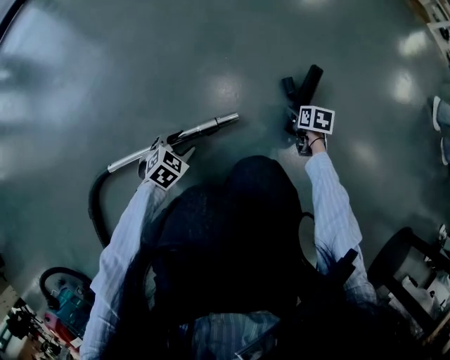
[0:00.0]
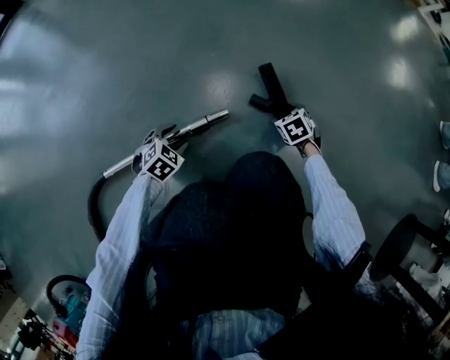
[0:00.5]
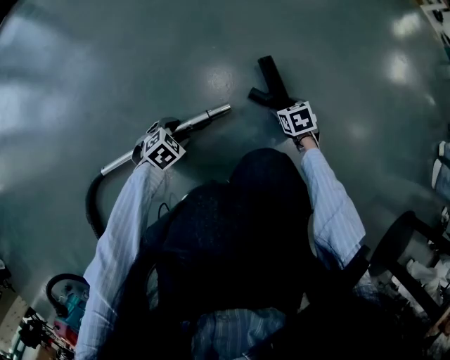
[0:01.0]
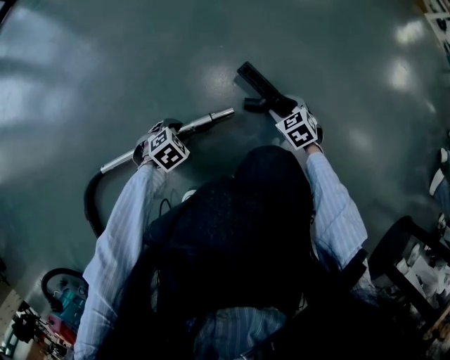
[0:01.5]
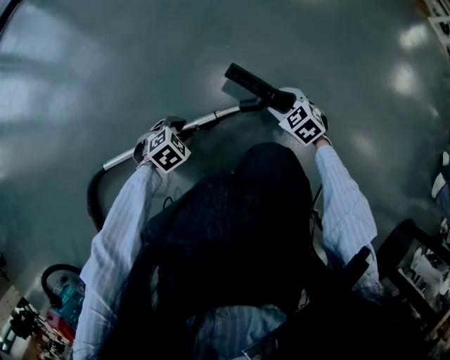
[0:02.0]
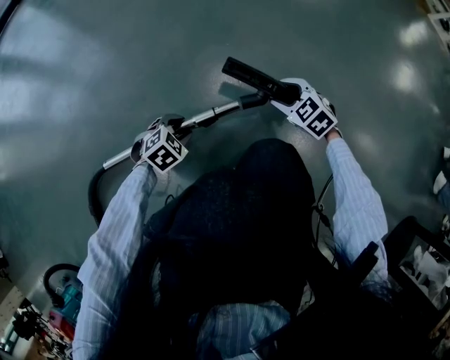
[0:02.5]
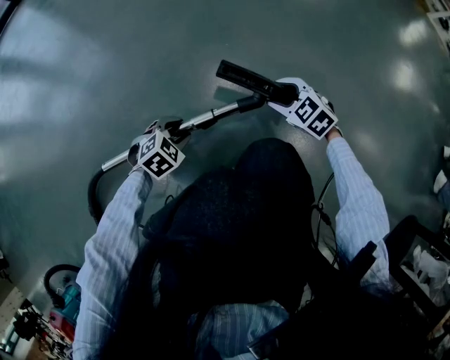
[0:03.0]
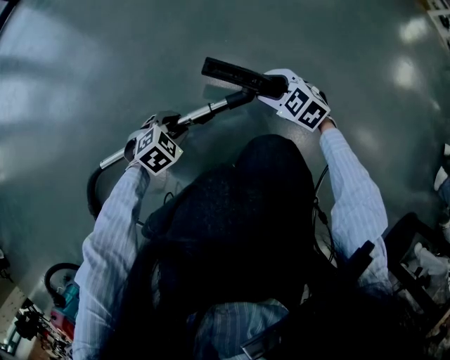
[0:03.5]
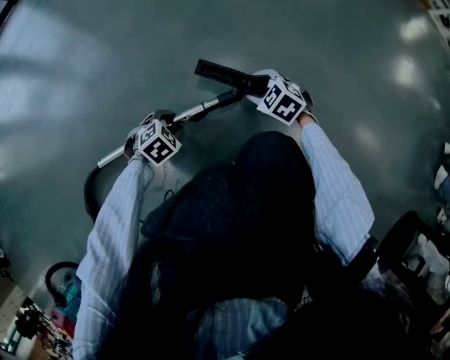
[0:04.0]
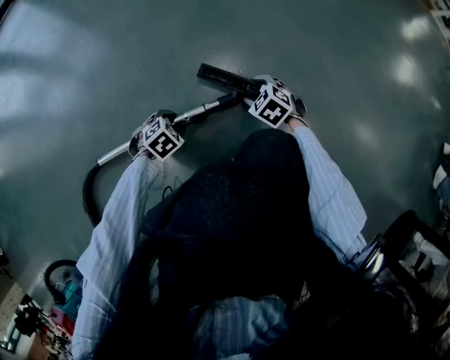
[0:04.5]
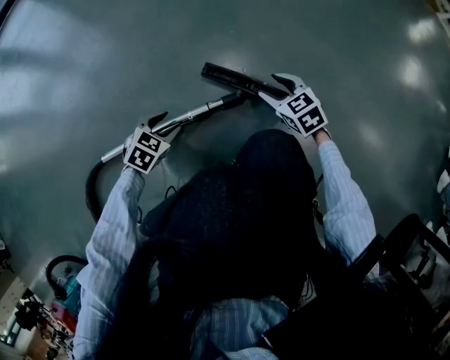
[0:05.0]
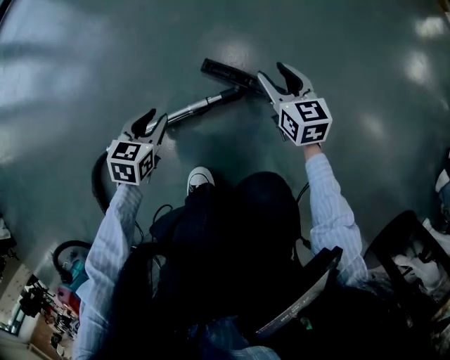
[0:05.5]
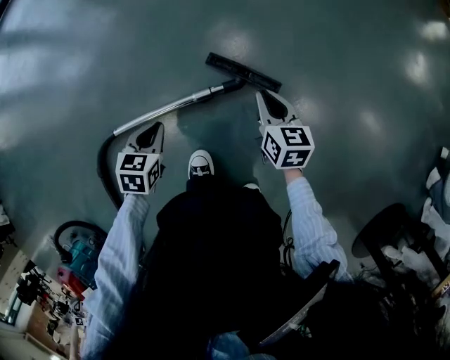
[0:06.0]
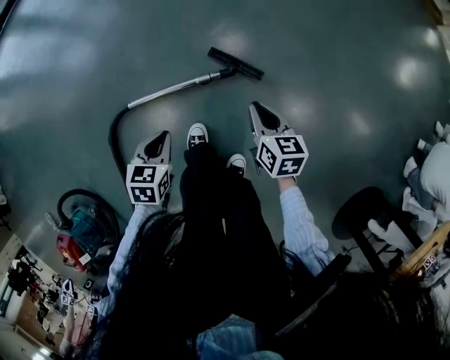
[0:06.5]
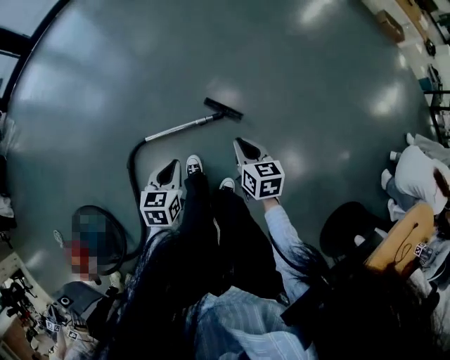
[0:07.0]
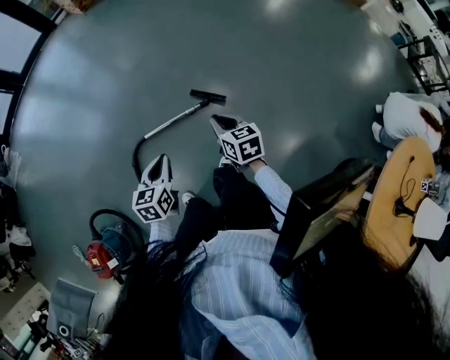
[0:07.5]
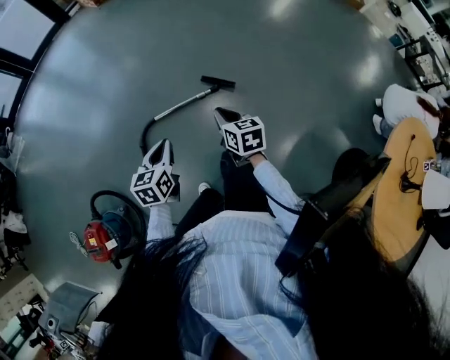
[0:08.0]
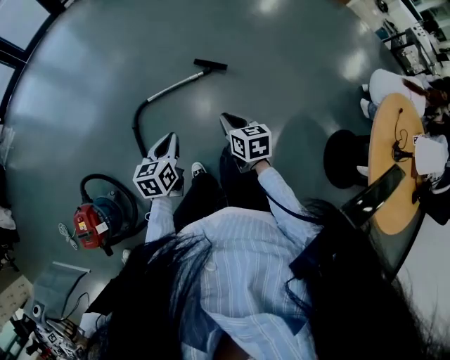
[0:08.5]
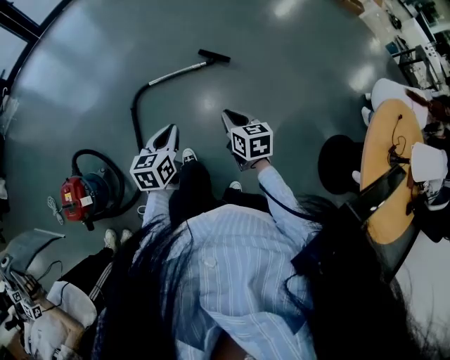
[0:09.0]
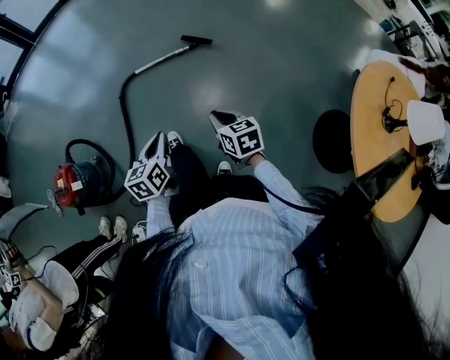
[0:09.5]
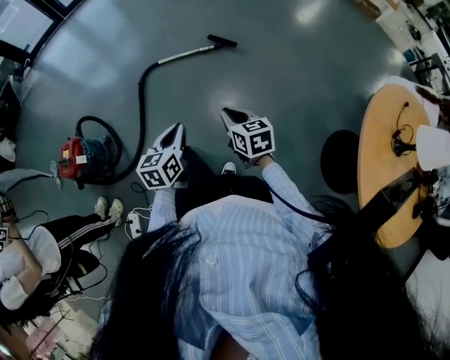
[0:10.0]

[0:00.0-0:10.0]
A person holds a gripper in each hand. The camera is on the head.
0:00.0 to 0:02.0: The right gripper goes approximately 15 cm to the left, backward and upward, and twists roughly 60 degrees counterclockwise, seen from behind.
0:02.0 to 0:04.0: The right gripper travels to the left by roughly 10 cm.
0:04.0 to 0:06.0: Both grippers travel together upward, roughly 20 cm. The left gripper twists about 40 degrees counterclockwise, seen from behind, and closes up. The right gripper rotates around the line of its fingers by approximately 50 degrees, clockwise from behind, and closes.
0:06.0 to 0:08.0: The grippers both shift upward and backward by some 80 cm. The left gripper turns by approximately 30 degrees.
0:08.0 to 0:10.0: The pair of grippers is taken backward, approximately 50 cm.

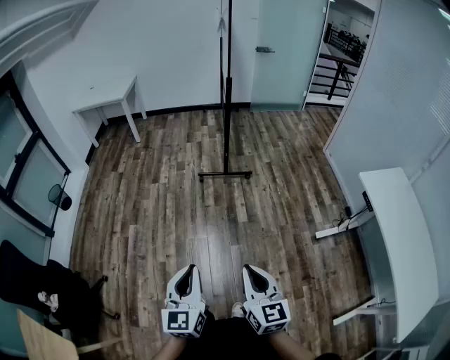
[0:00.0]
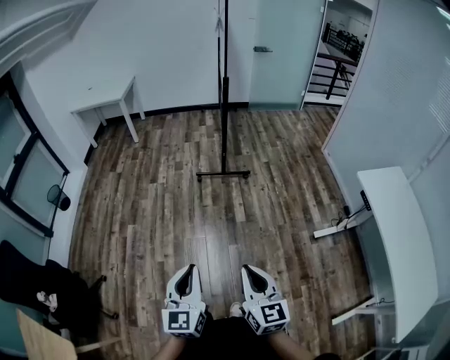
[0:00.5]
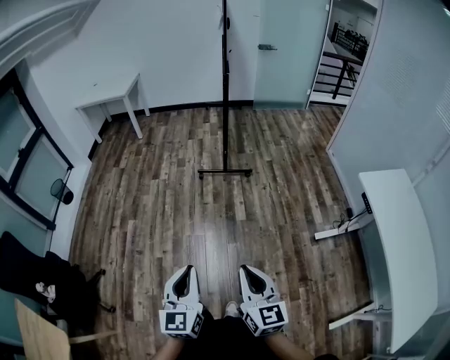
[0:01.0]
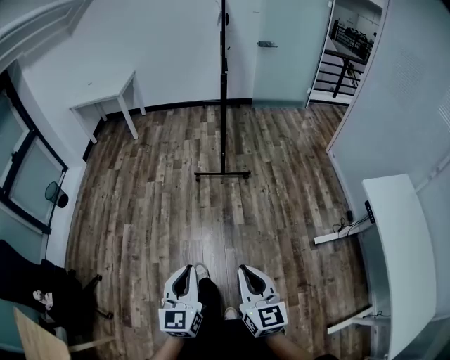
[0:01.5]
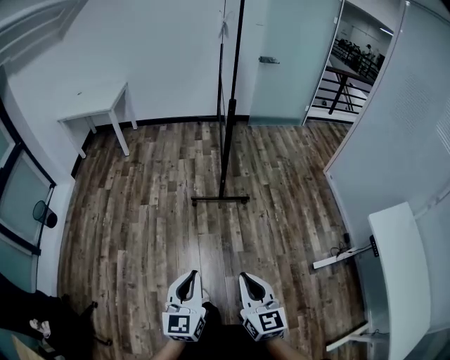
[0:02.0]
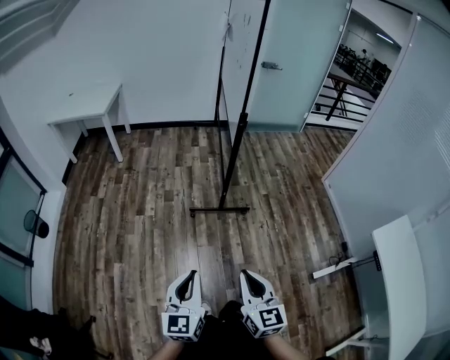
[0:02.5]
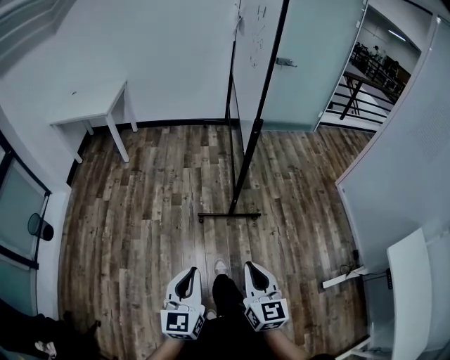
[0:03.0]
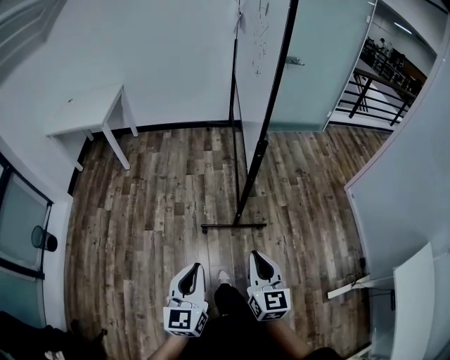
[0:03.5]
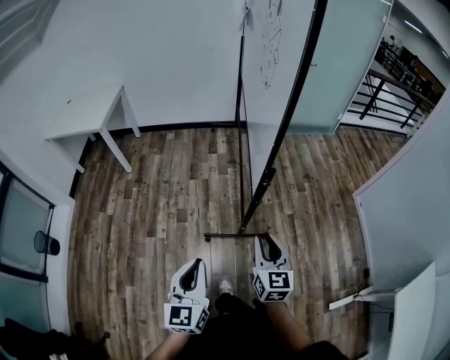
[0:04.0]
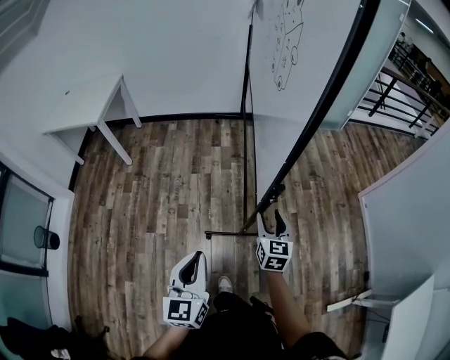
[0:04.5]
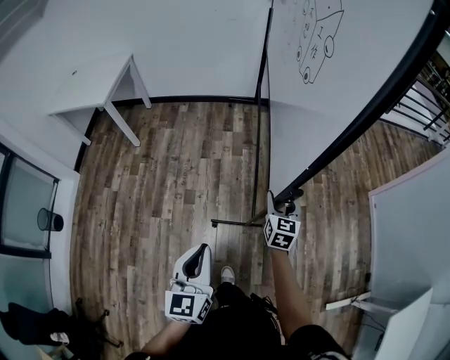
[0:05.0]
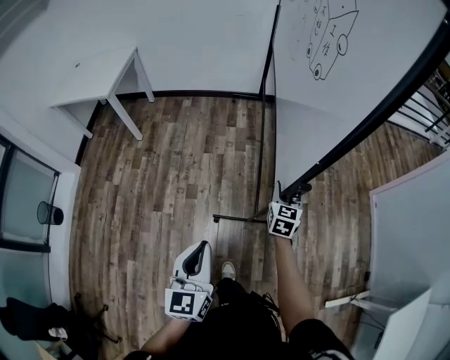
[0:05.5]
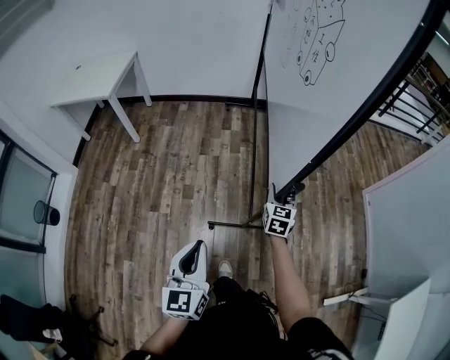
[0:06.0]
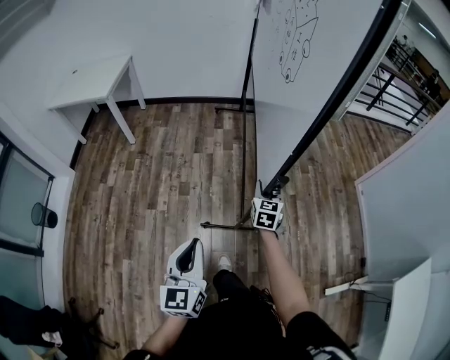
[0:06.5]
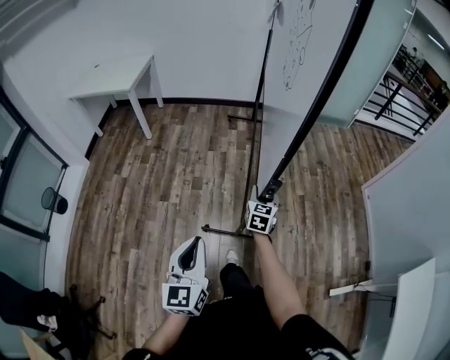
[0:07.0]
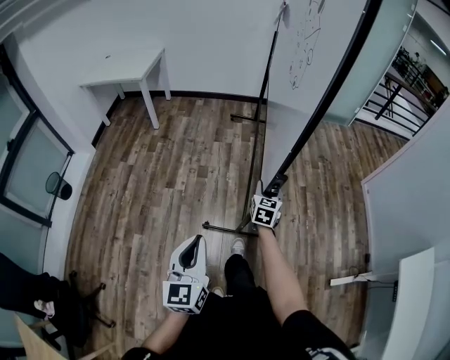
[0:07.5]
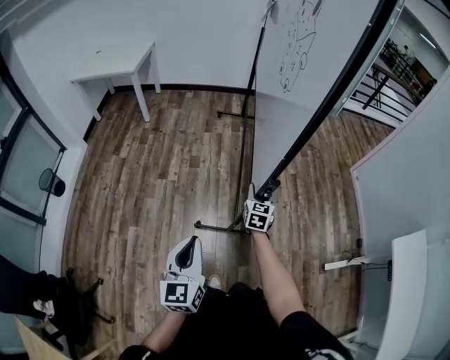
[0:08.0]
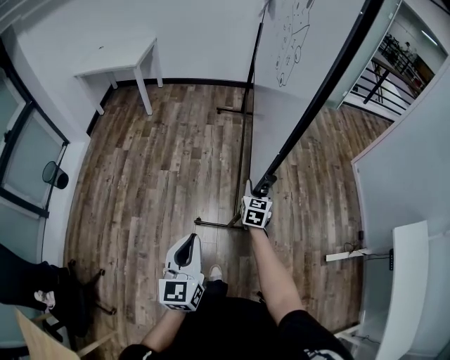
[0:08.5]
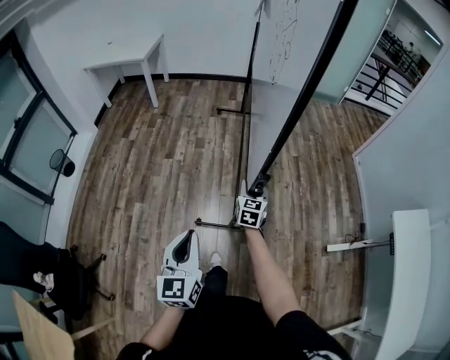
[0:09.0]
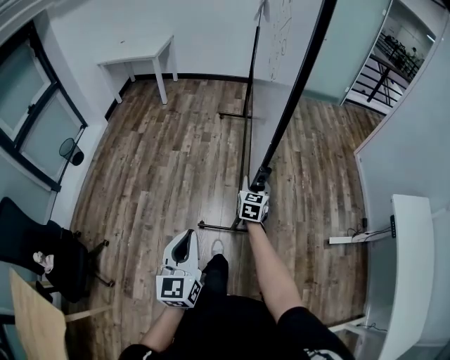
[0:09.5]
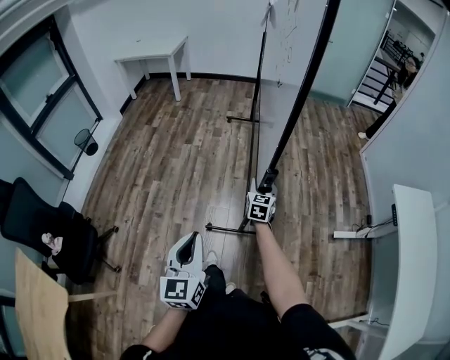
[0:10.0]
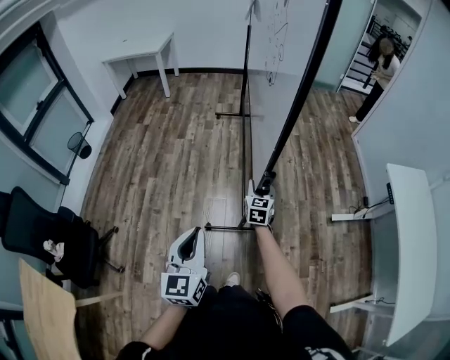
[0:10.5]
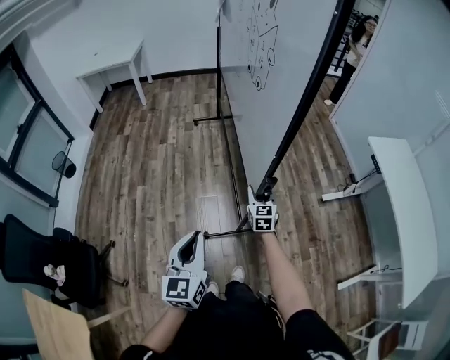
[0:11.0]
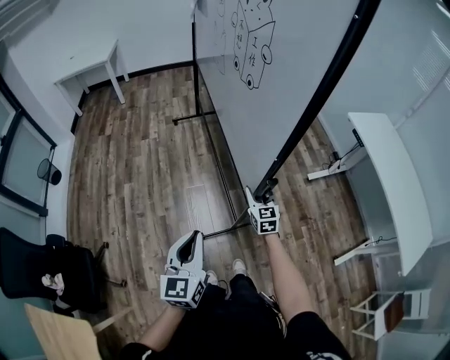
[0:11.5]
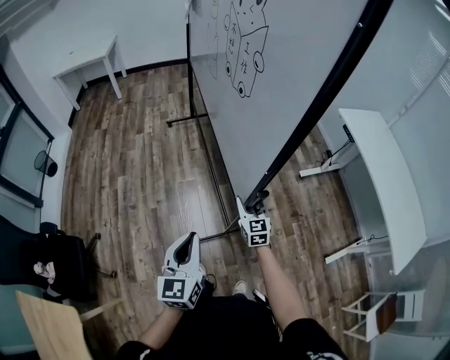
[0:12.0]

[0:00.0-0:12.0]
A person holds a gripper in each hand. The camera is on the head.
0:00.0 to 0:02.0: The grippers both shift forward by about 25 cm.
0:02.0 to 0:04.0: Both grippers are carried forward, roughly 60 cm.
0:04.0 to 0:06.0: The right gripper travels forward and downward by about 25 cm. Meanwhile the left gripper goes some 5 cm forward.
0:06.0 to 0:08.0: The pair of grippers is taken backward, some 40 cm.
0:08.0 to 0:10.0: The two grippers travel together, backward, roughly 50 cm.
0:10.0 to 0:12.0: The right gripper shifts some 35 cm backward, while the left gripper goes roughly 20 cm backward, and changes its angle by about 20 degrees.

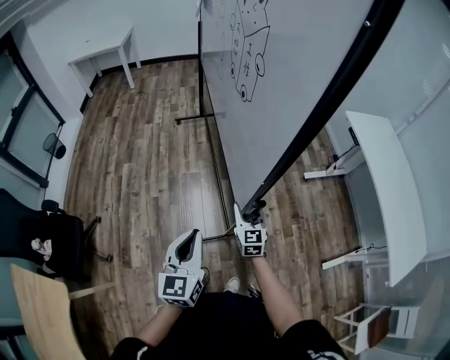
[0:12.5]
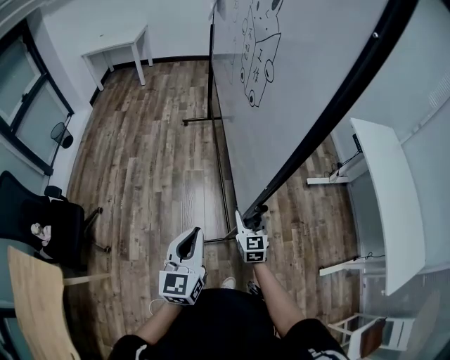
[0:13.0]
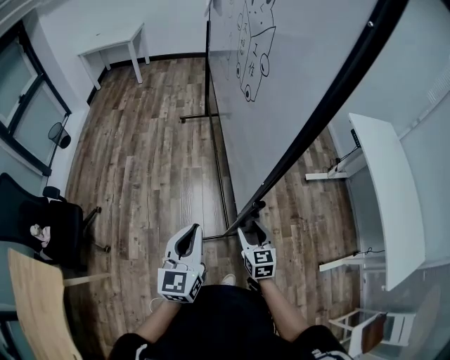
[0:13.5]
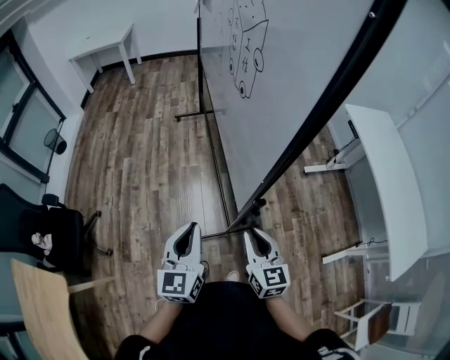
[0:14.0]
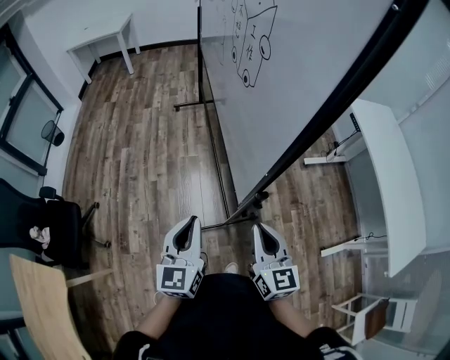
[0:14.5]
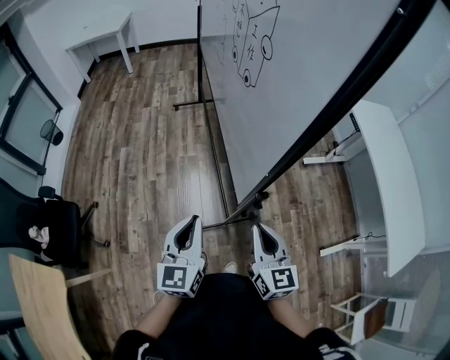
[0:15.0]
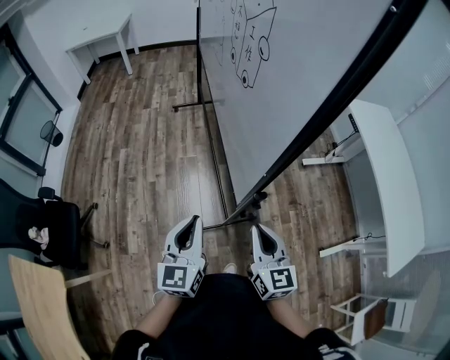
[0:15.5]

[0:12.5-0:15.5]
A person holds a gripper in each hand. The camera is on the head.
0:12.5 to 0:14.0: The right gripper goes approximately 20 cm backward and upward.
0:14.0 to 0:15.5: The grippers make only small movements.

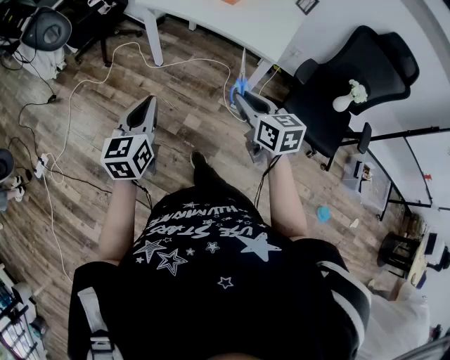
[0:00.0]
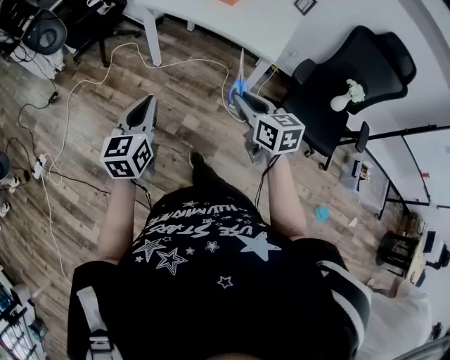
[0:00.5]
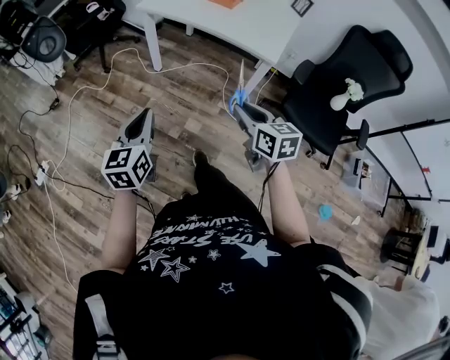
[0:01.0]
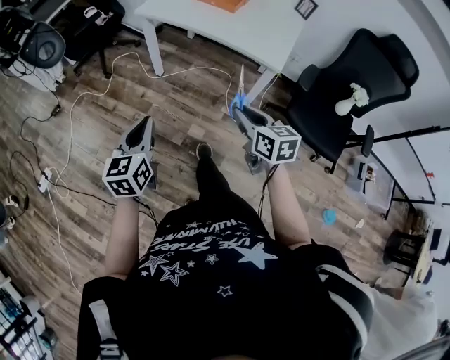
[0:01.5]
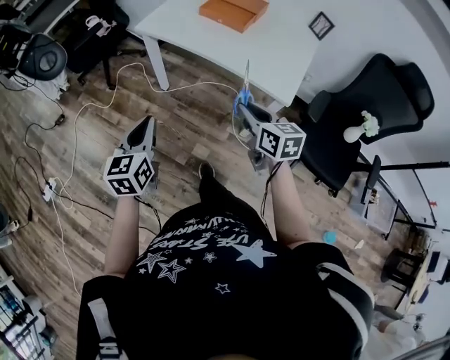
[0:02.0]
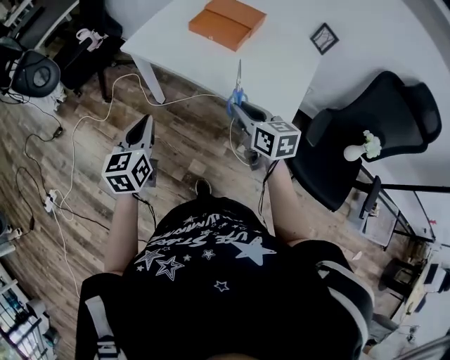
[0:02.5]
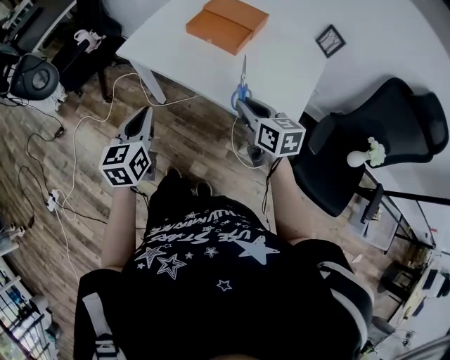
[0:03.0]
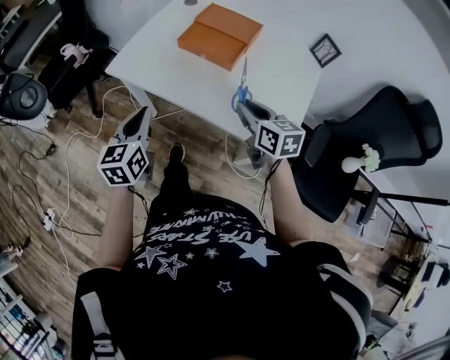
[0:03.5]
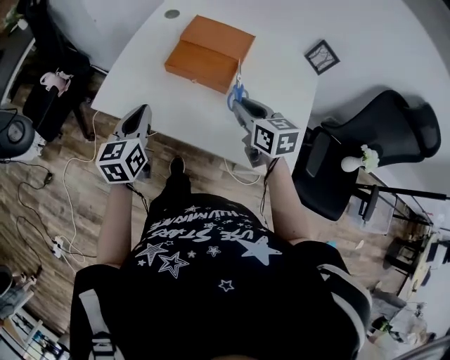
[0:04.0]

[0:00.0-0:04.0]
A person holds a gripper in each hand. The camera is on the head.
0:00.0 to 0:02.0: The two grippers go some 20 cm forward.
0:02.0 to 0:04.0: The pair of grippers is taken forward, some 50 cm.
